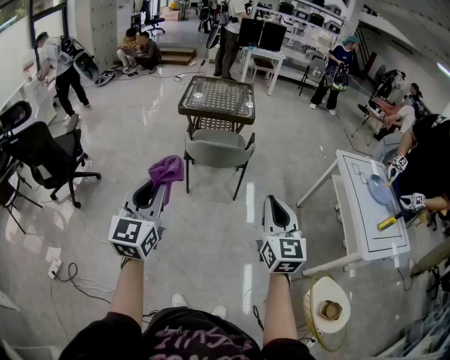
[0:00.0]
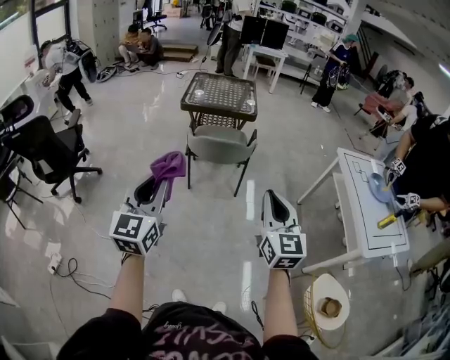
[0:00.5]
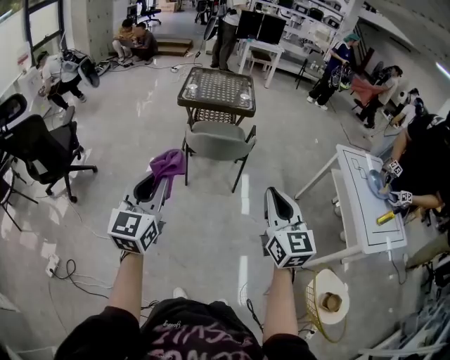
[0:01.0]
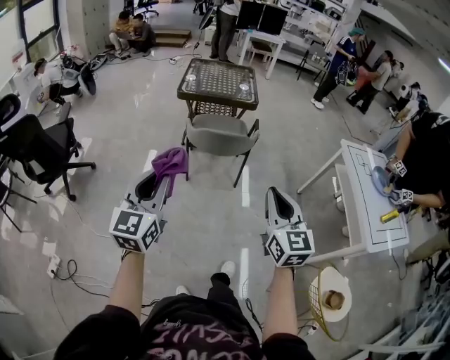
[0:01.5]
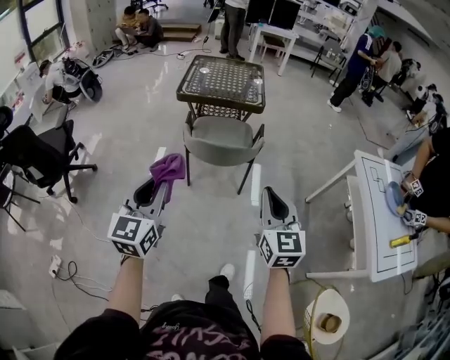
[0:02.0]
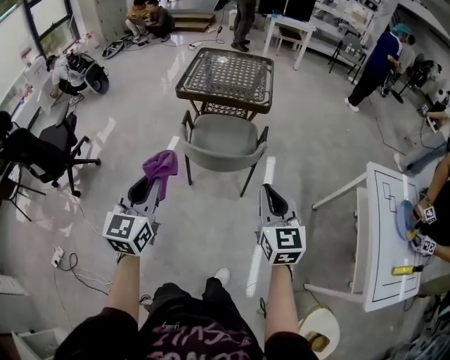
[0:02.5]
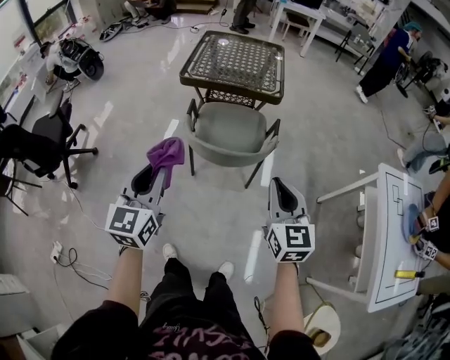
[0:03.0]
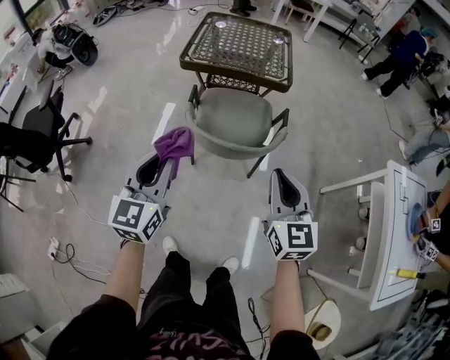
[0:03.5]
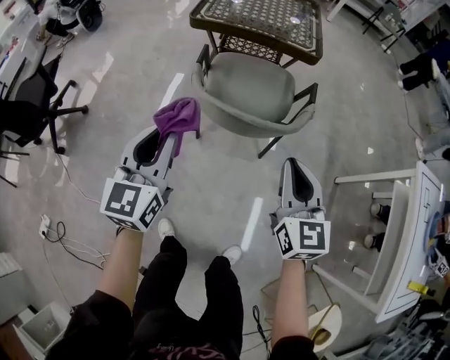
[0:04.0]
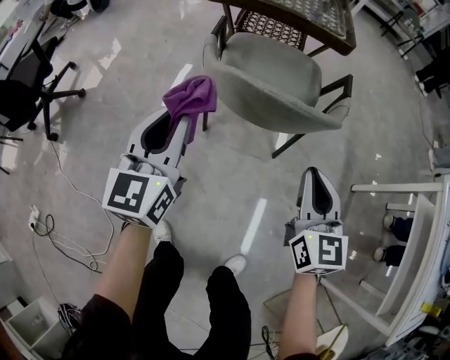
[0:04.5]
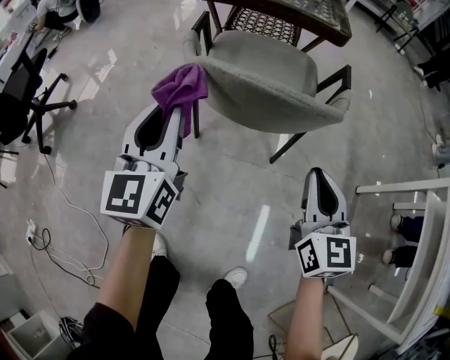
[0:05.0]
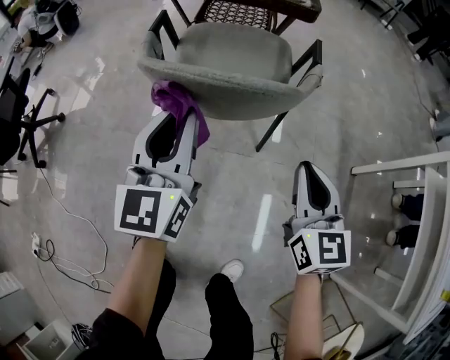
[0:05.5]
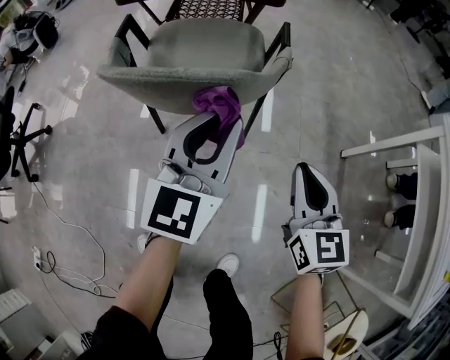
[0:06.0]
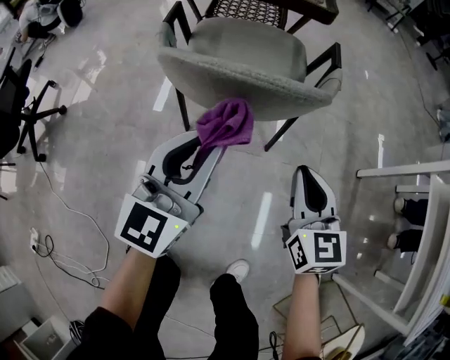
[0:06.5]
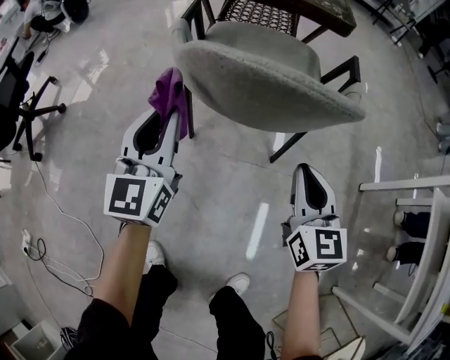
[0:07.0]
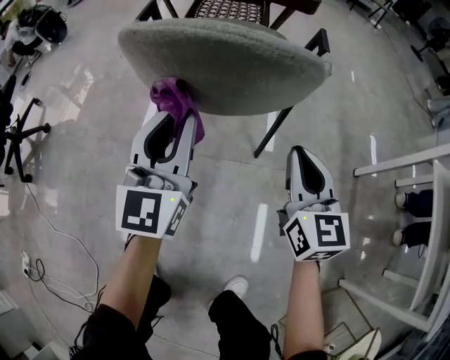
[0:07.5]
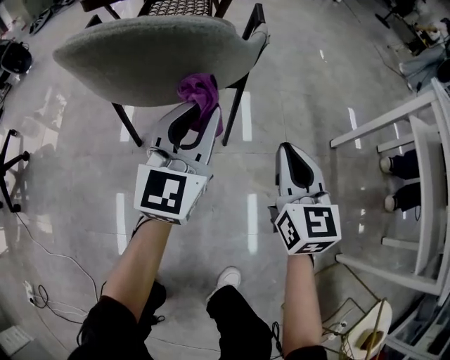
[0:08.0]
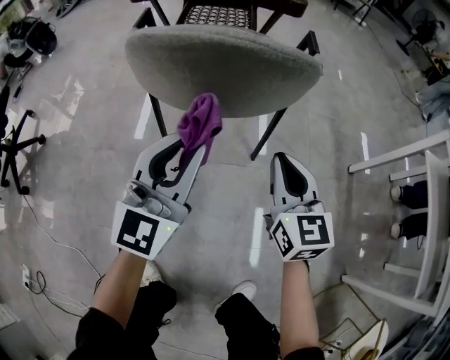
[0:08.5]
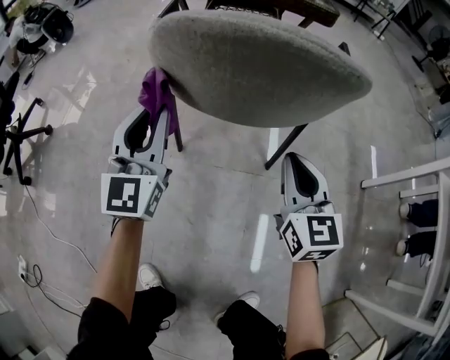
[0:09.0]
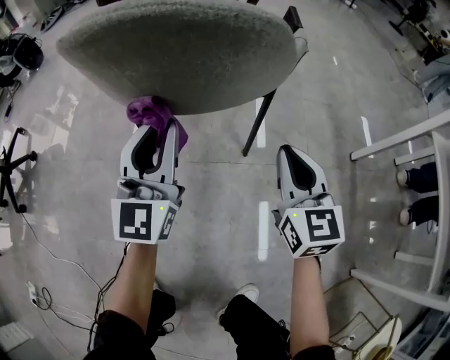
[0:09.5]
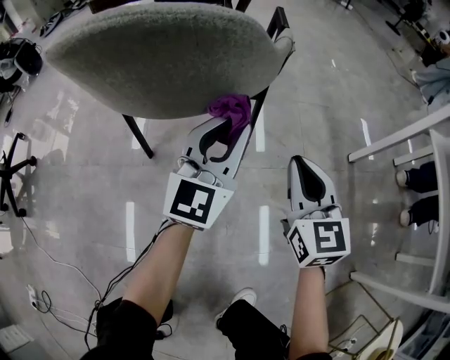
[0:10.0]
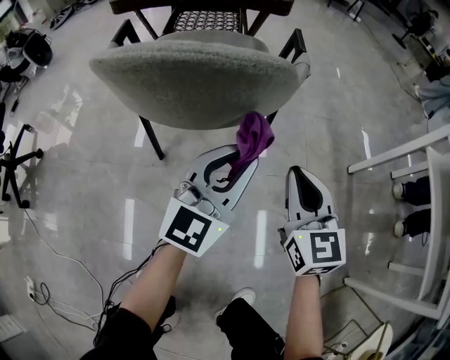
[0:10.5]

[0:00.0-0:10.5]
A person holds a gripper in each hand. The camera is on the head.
0:00.0 to 0:02.0: The right gripper heads forward, covering some 20 cm. Meanwhile the left gripper is displaced forward and downward by approximately 20 cm.
0:02.0 to 0:04.0: Both grippers travel together forward and downward, some 35 cm.
0:04.0 to 0:06.5: The right gripper travels downward by roughly 25 cm. Meanwhile the left gripper travels downward and to the right by about 25 cm.
0:06.5 to 0:08.5: The right gripper moves left and right over about 15 cm, changing direction 2 times. The left gripper moves left and right over about 30 cm, changing direction 2 times.
0:08.5 to 0:10.5: The left gripper travels to the right by approximately 15 cm. Meanwhile the right gripper goes left and right, about 15 cm each way, reversing 2 times.

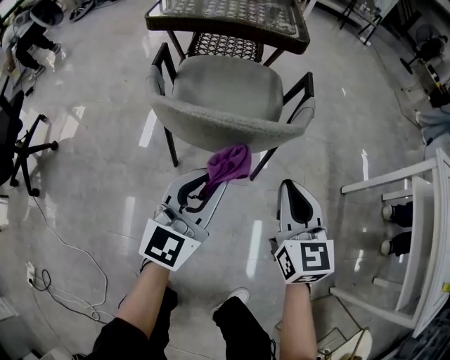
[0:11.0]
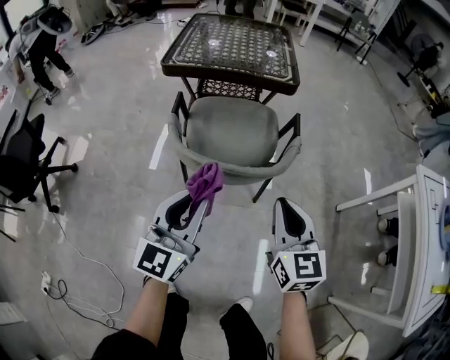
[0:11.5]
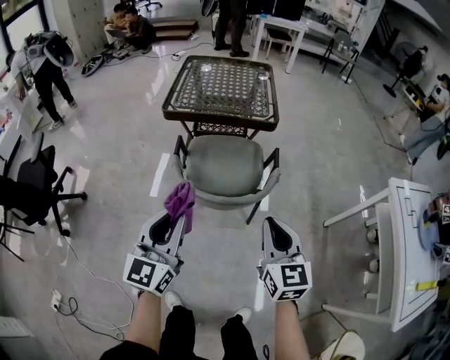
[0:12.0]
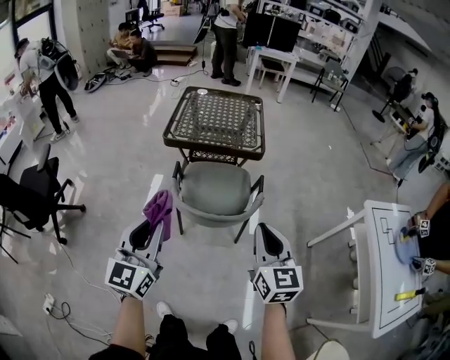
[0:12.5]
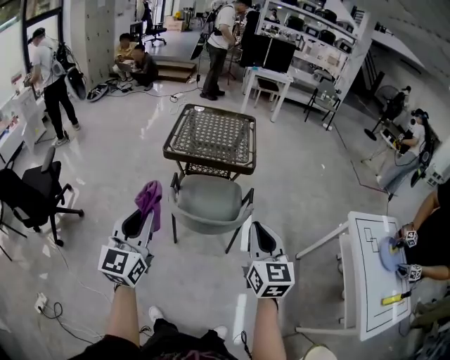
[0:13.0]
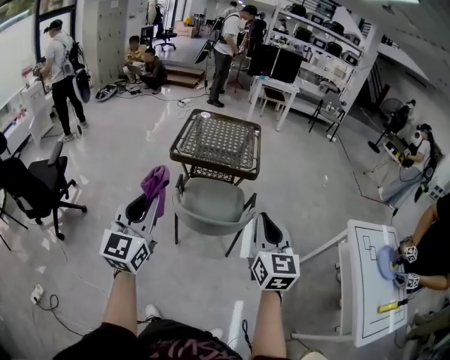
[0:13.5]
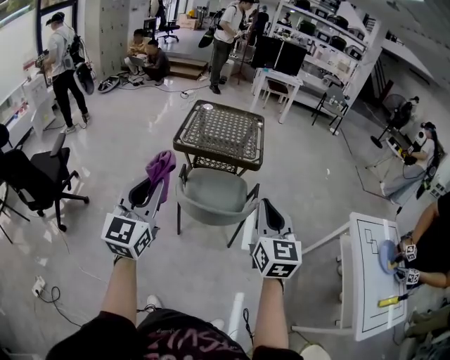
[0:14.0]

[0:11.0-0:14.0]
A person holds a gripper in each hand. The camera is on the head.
0:11.0 to 0:12.5: Both grippers move upward, some 40 cm.
0:12.5 to 0:14.0: Both grippers move upward, some 10 cm.

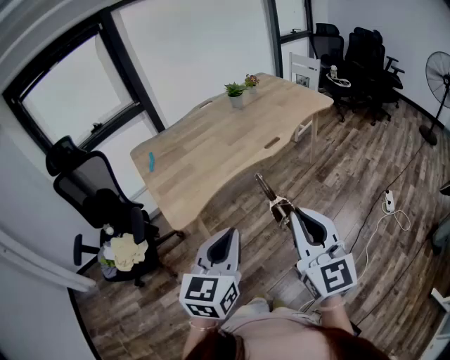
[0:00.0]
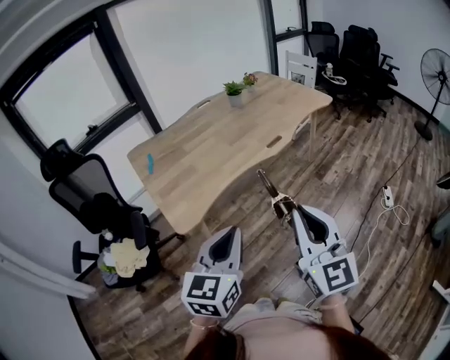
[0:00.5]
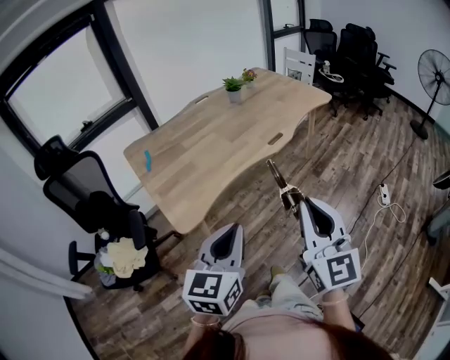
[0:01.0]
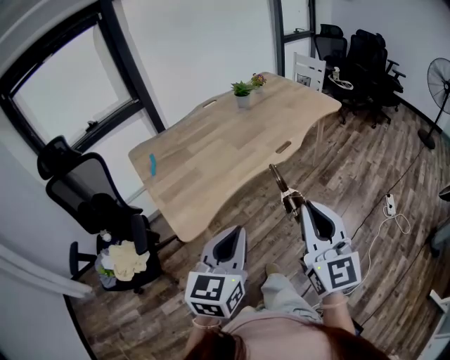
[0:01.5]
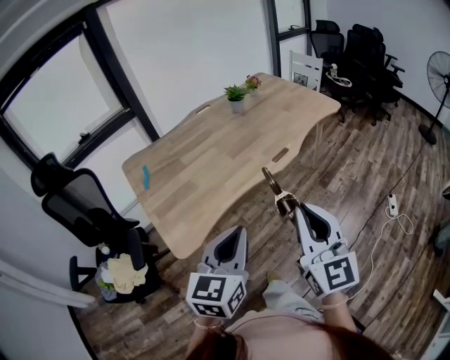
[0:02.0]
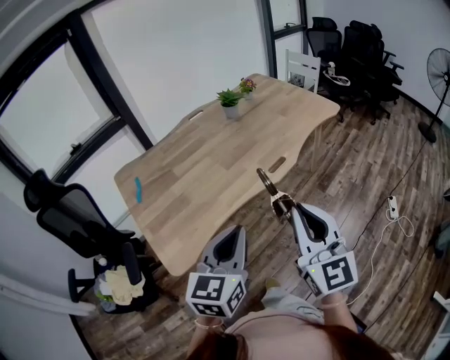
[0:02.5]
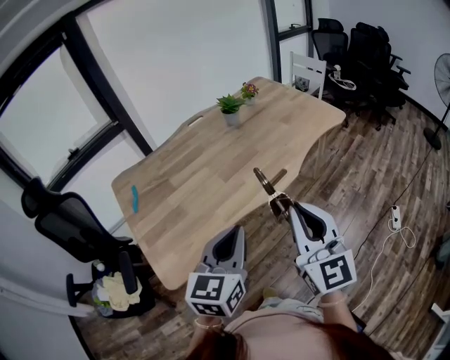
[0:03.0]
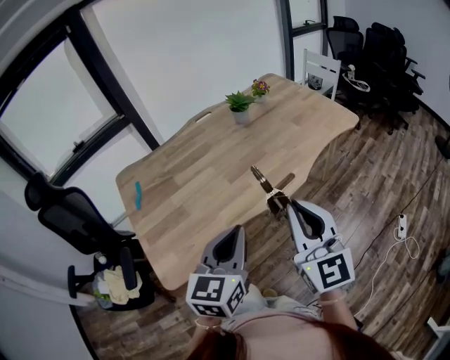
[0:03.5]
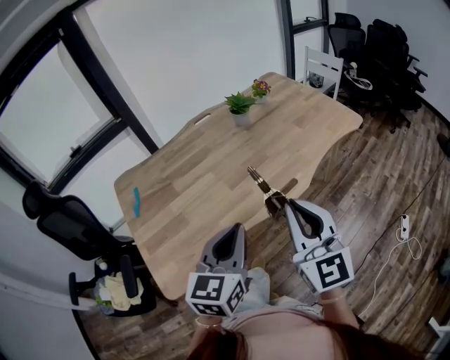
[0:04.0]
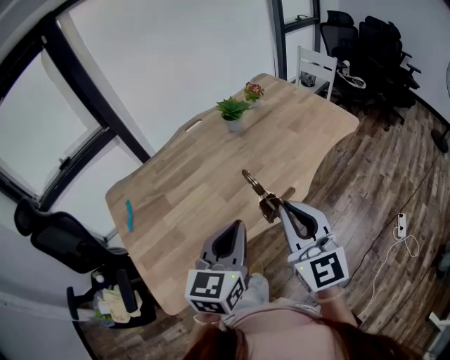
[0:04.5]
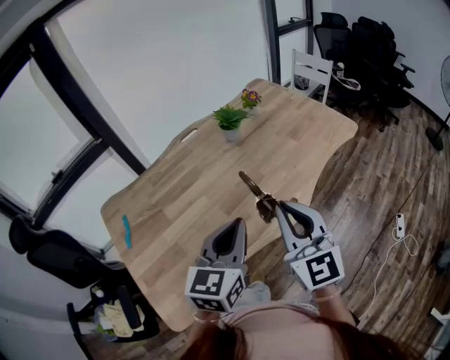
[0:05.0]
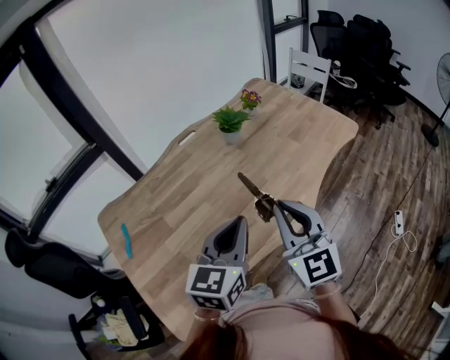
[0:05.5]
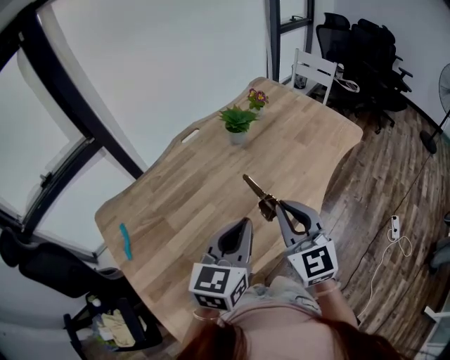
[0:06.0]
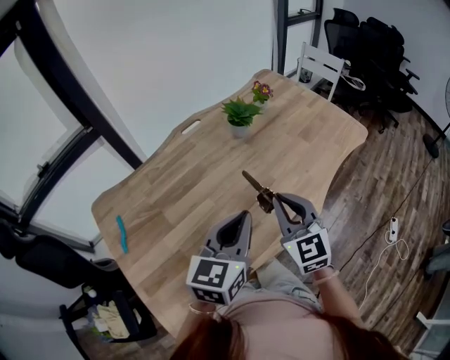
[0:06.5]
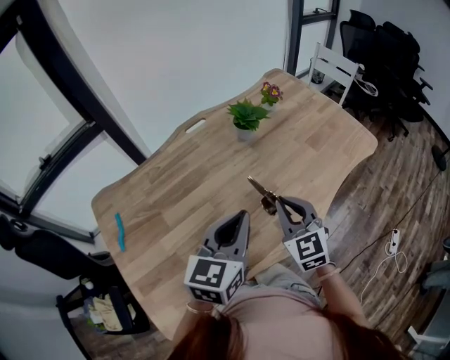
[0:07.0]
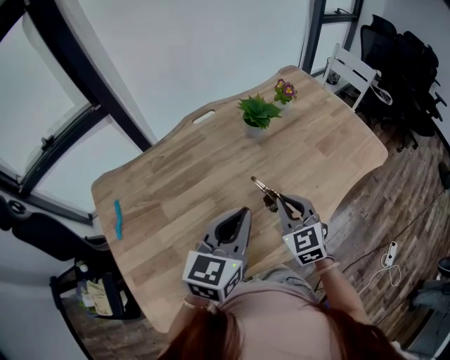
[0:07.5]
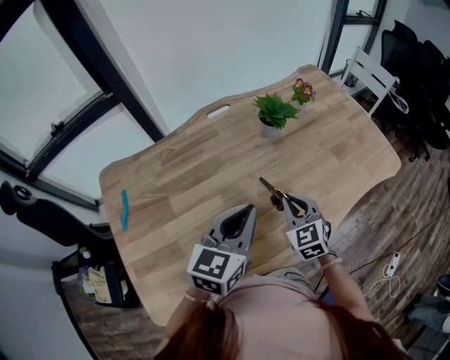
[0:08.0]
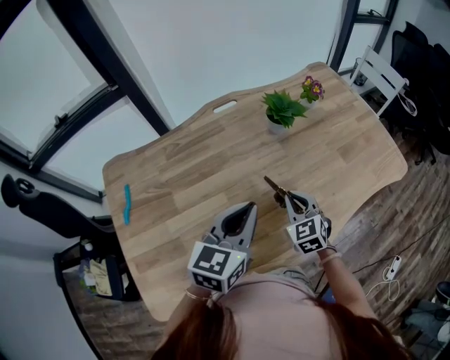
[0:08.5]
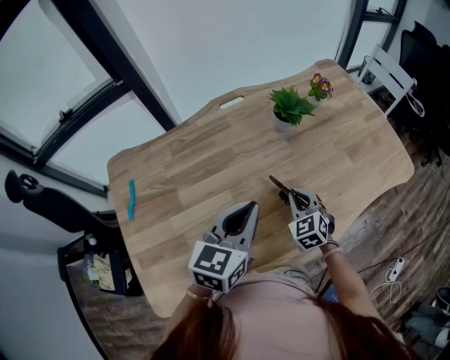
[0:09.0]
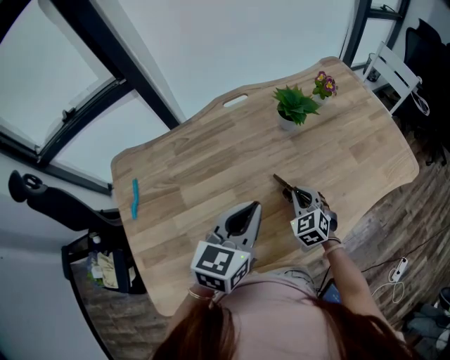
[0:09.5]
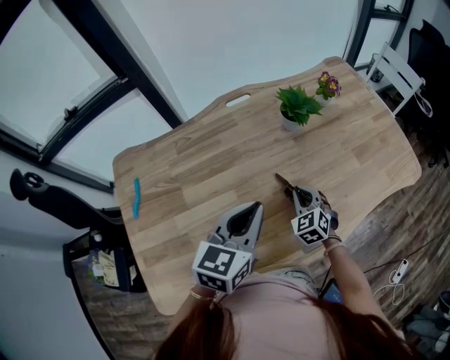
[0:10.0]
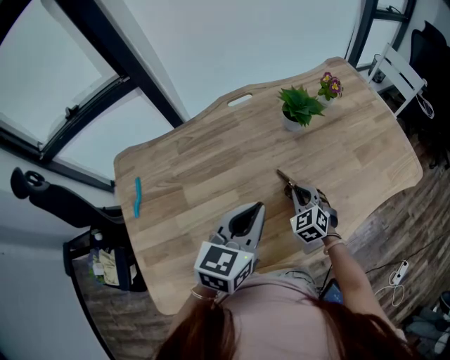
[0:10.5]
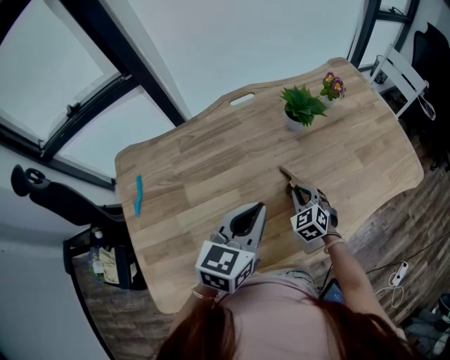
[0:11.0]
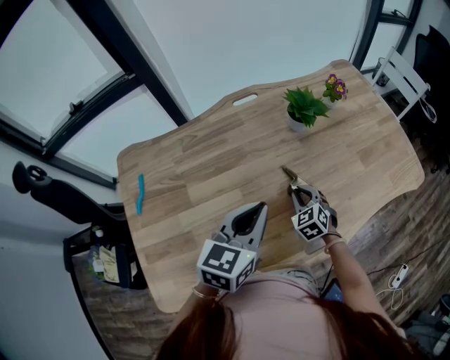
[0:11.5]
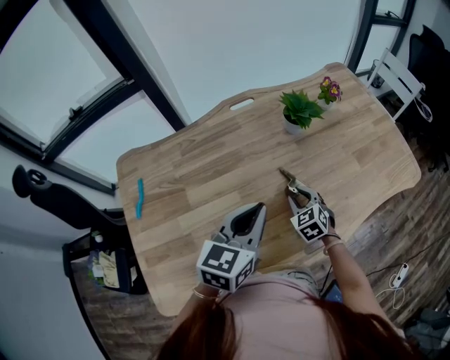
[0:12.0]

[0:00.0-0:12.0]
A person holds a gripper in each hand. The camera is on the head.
0:00.0 to 0:02.0: The grippers both shift forward by roughly 15 cm.
0:02.0 to 0:04.0: The grippers both shift forward by some 25 cm.
0:04.0 to 0:06.0: The left gripper travels forward by about 20 cm. Meanwhile the right gripper travels forward and to the left by some 20 cm.
0:06.0 to 0:08.0: The left gripper is displaced forward by approximately 10 cm, while the right gripper heads downward and forward, covering roughly 25 cm, and changes its angle by some 30 degrees.
0:08.0 to 0:10.0: The right gripper moves downward, about 10 cm.
0:10.0 to 0:12.0: There are only small adjustments of the grippers.

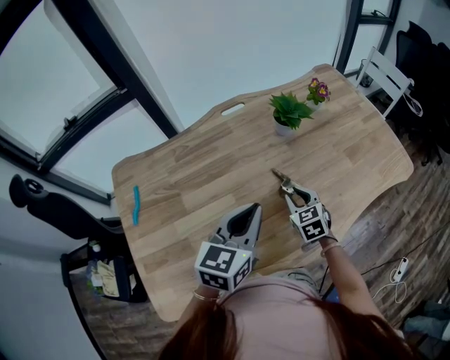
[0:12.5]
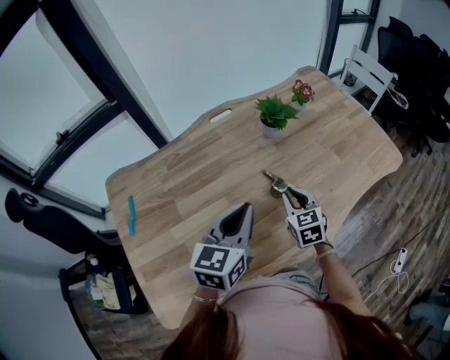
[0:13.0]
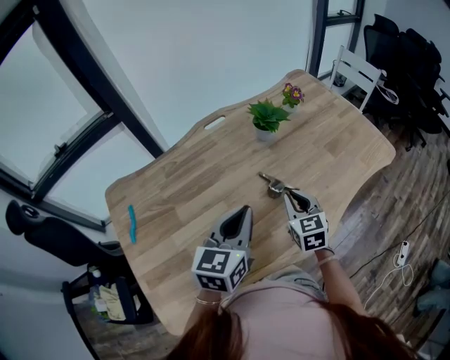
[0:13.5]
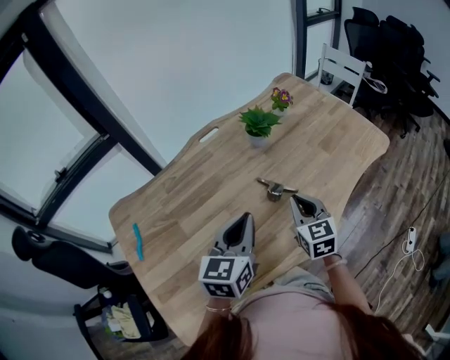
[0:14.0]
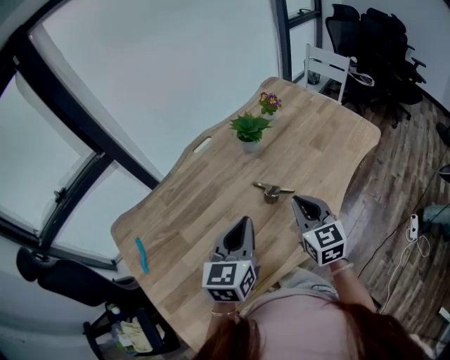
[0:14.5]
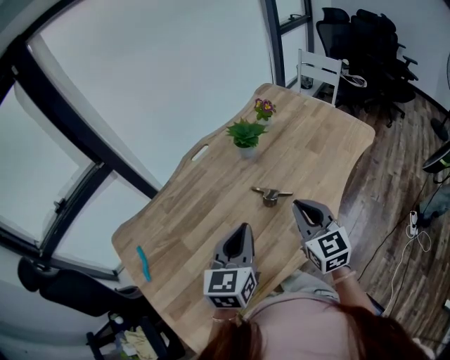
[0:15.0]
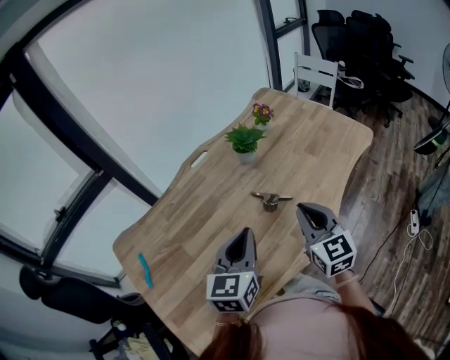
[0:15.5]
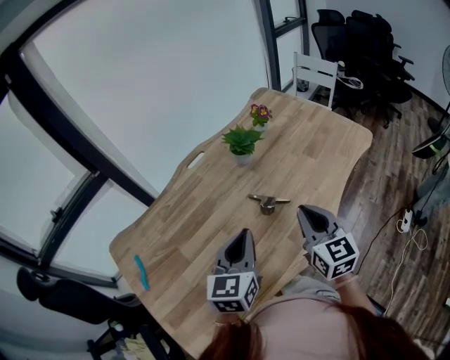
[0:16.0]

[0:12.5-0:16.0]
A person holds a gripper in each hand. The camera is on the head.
0:12.5 to 0:14.5: The right gripper shifts approximately 20 cm upward and backward, changes its angle by some 30 degrees, and closes.
0:14.5 to 0:16.0: The grippers stay close to where they were, moving slightly.
